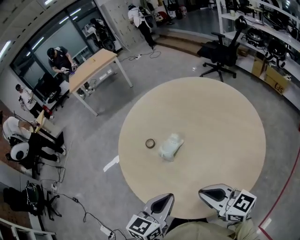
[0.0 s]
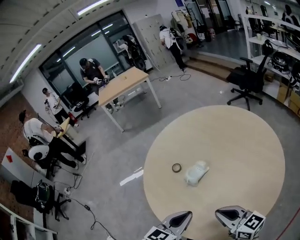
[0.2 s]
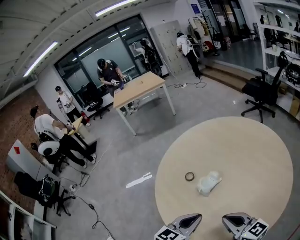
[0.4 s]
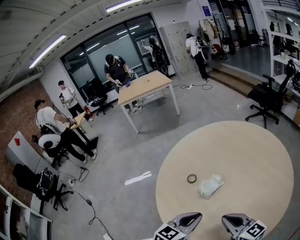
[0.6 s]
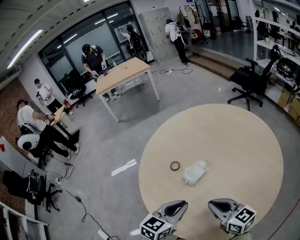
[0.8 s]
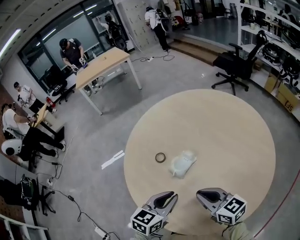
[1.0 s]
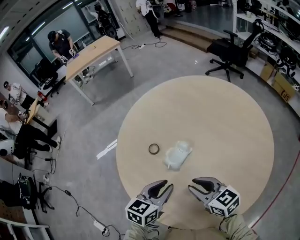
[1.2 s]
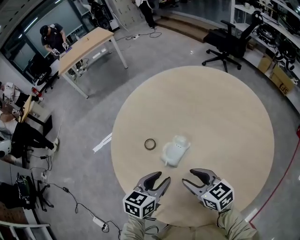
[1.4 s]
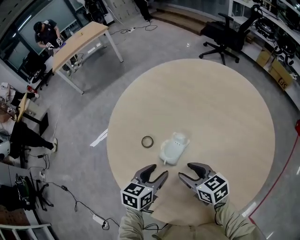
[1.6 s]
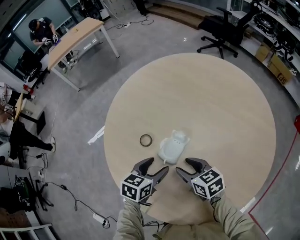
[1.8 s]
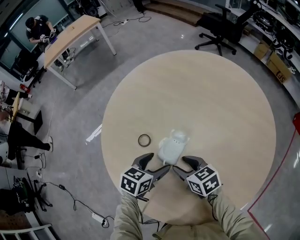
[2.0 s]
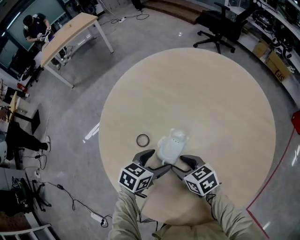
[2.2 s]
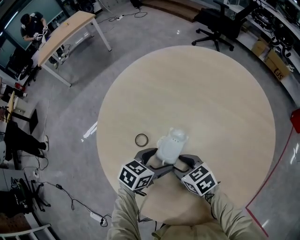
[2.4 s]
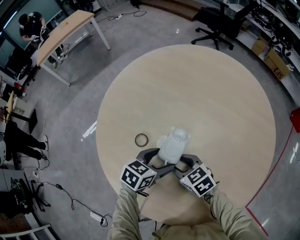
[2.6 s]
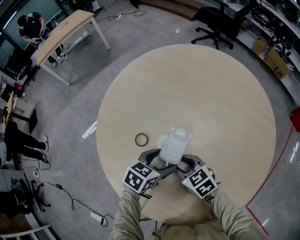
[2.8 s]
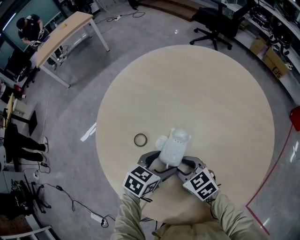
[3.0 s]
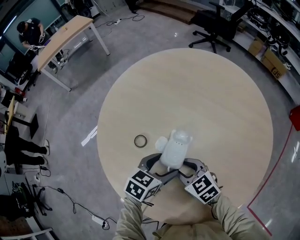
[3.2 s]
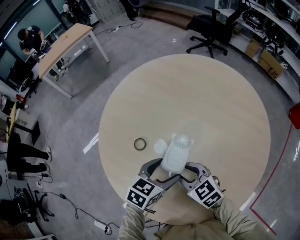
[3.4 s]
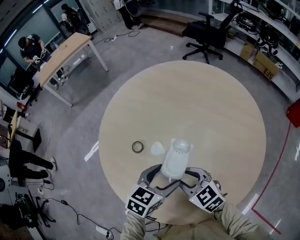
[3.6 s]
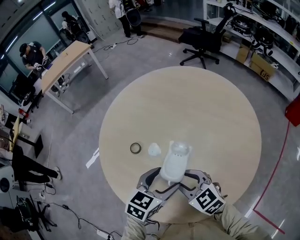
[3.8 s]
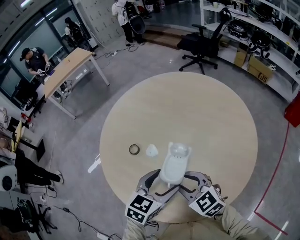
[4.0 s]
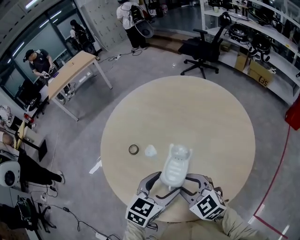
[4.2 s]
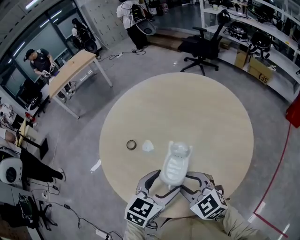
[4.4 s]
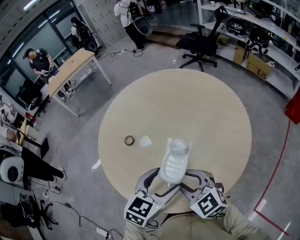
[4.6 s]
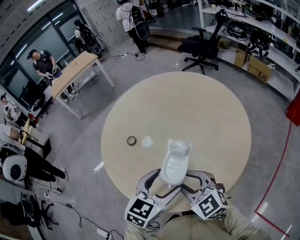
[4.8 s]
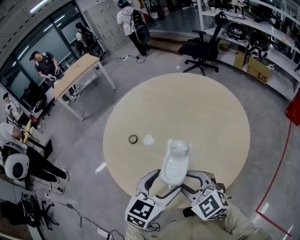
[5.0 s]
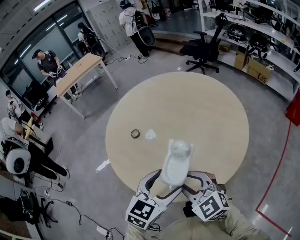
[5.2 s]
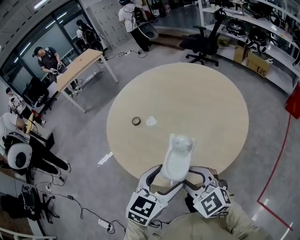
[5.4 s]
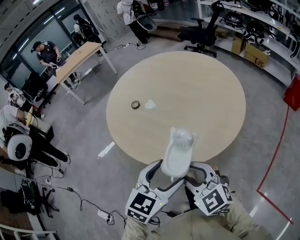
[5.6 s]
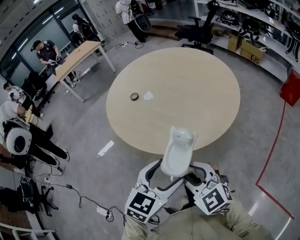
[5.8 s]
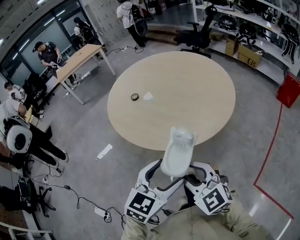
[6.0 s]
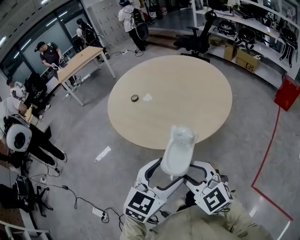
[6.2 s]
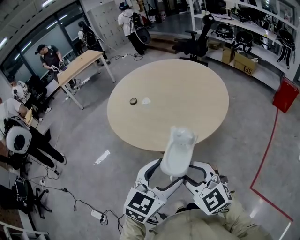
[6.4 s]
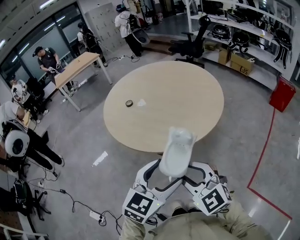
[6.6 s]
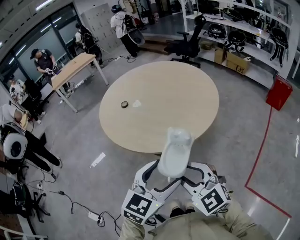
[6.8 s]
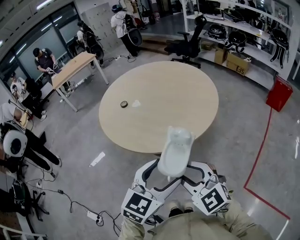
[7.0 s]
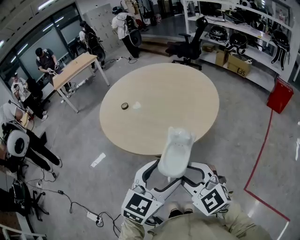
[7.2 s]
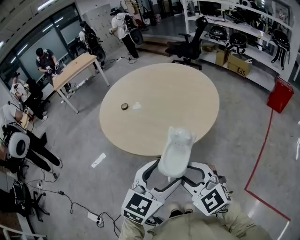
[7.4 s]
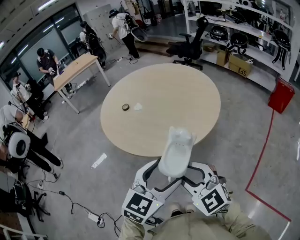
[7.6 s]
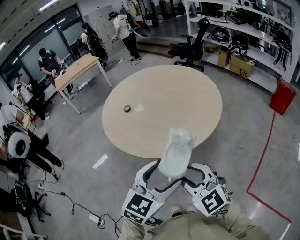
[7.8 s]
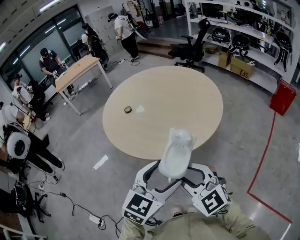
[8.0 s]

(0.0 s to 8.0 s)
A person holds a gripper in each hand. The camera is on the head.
0.0 s - 1.6 s: Both grippers move forward and downward, roughly 25 cm. The right gripper turns by some 20 degrees, and opens its fingers; the left gripper opens its fingers.
1.6 s - 3.2 s: The left gripper ends up roughly 5 cm from where it was, turns by approximately 20 degrees, and opens up.
3.2 s - 4.8 s: The left gripper is displaced backward, upward and to the right by about 25 cm, and changes its angle by some 20 degrees, while the right gripper moves upward, backward and to the right, approximately 25 cm, and rotates some 30 degrees.
4.8 s - 6.4 s: Both grippers travel together backward, roughly 35 cm.
6.4 s - 8.0 s: The grippers stay close to where they were, moving slightly.

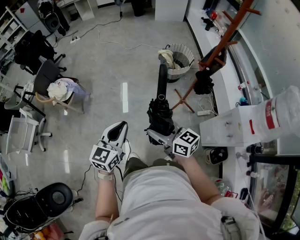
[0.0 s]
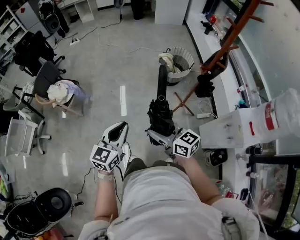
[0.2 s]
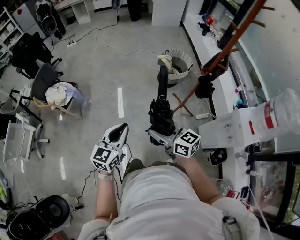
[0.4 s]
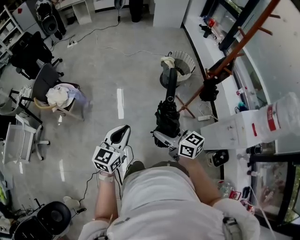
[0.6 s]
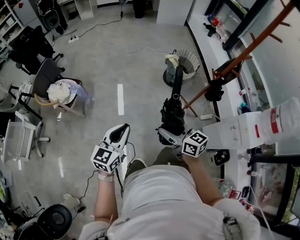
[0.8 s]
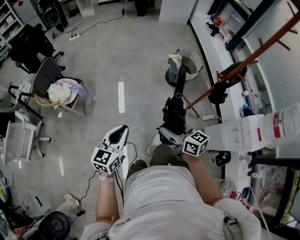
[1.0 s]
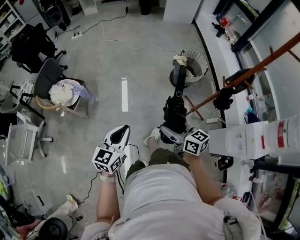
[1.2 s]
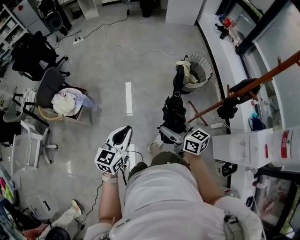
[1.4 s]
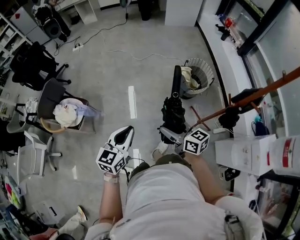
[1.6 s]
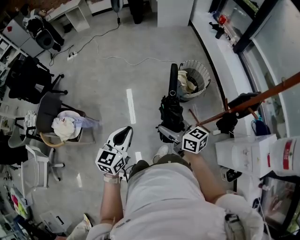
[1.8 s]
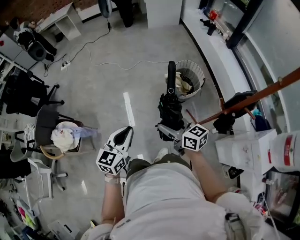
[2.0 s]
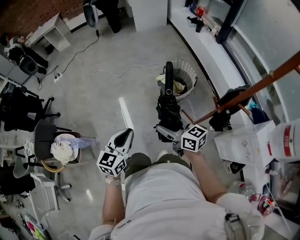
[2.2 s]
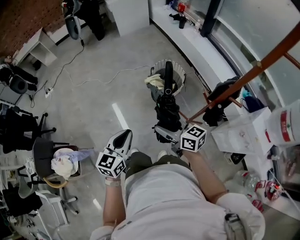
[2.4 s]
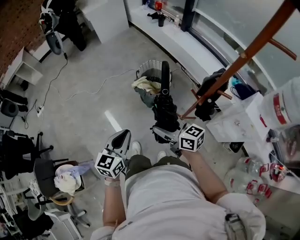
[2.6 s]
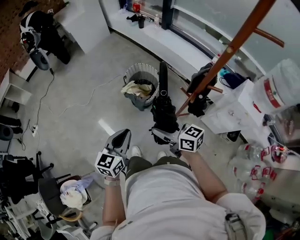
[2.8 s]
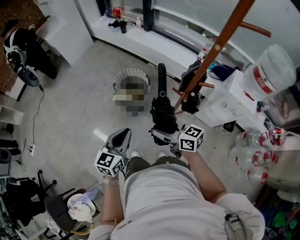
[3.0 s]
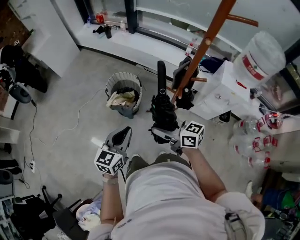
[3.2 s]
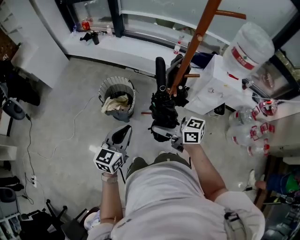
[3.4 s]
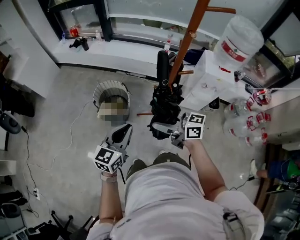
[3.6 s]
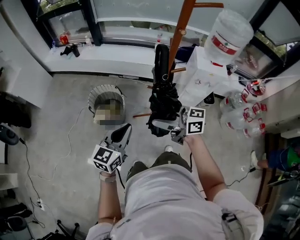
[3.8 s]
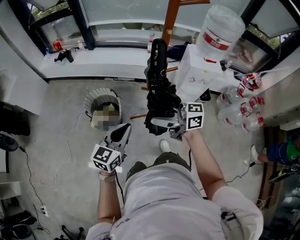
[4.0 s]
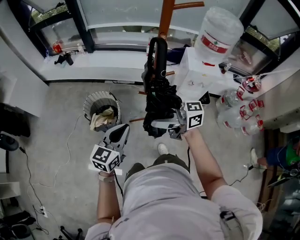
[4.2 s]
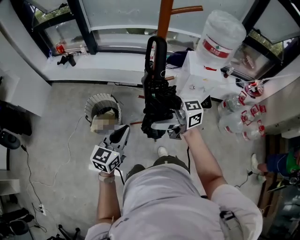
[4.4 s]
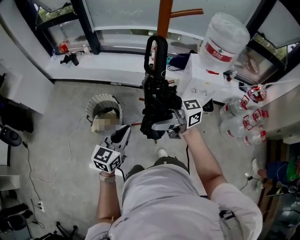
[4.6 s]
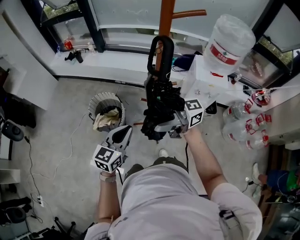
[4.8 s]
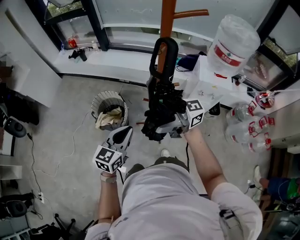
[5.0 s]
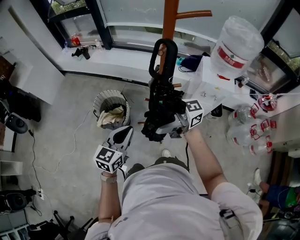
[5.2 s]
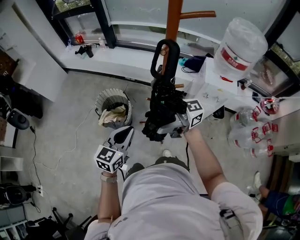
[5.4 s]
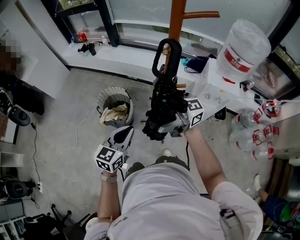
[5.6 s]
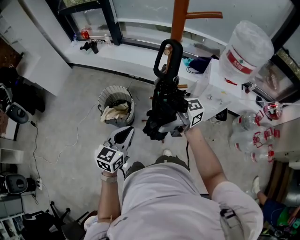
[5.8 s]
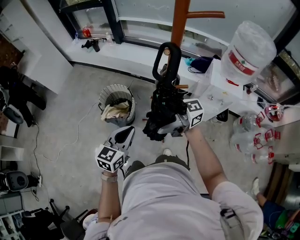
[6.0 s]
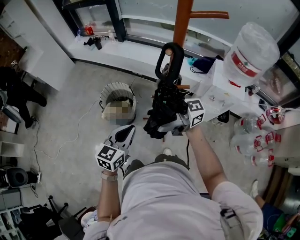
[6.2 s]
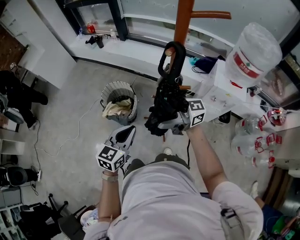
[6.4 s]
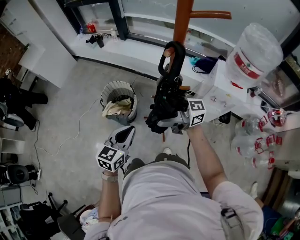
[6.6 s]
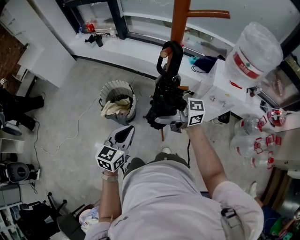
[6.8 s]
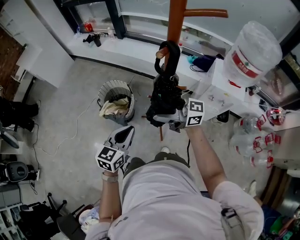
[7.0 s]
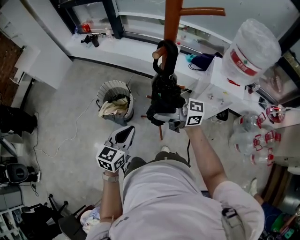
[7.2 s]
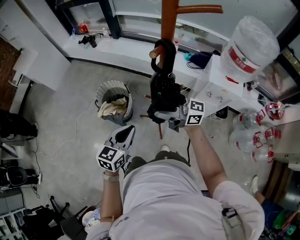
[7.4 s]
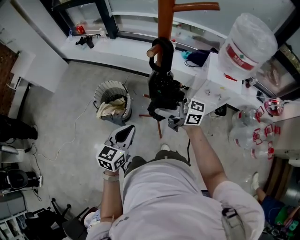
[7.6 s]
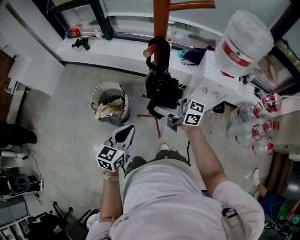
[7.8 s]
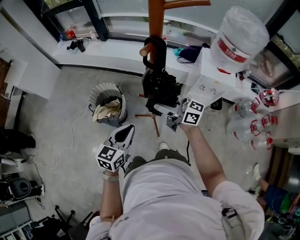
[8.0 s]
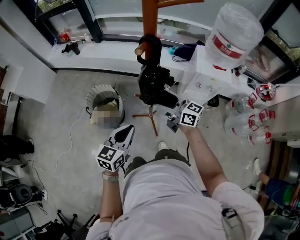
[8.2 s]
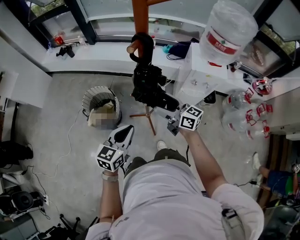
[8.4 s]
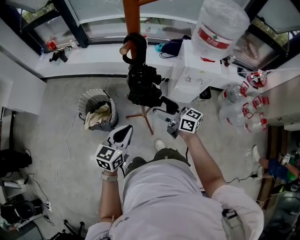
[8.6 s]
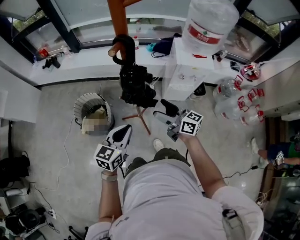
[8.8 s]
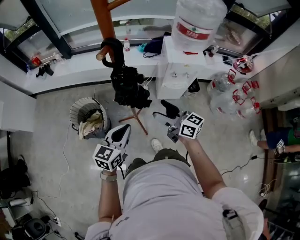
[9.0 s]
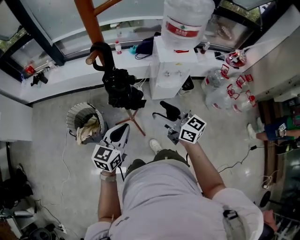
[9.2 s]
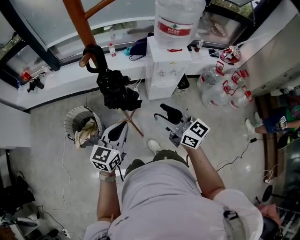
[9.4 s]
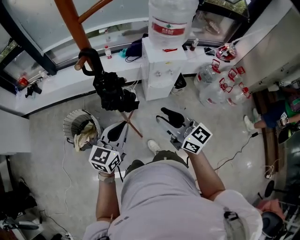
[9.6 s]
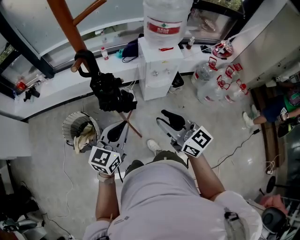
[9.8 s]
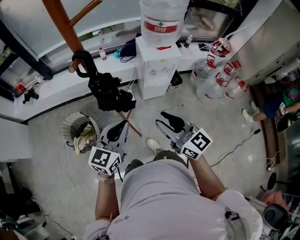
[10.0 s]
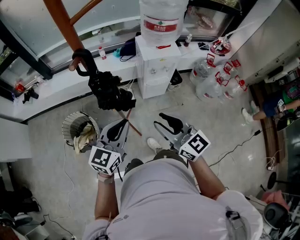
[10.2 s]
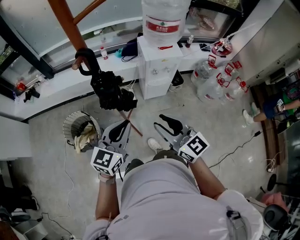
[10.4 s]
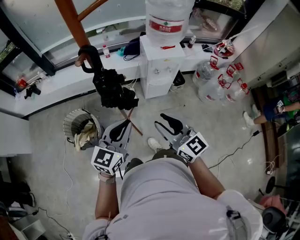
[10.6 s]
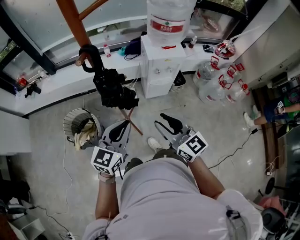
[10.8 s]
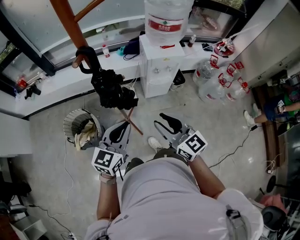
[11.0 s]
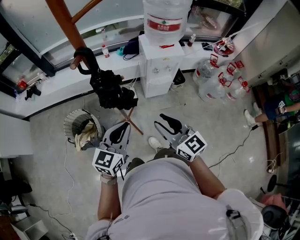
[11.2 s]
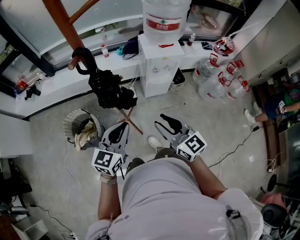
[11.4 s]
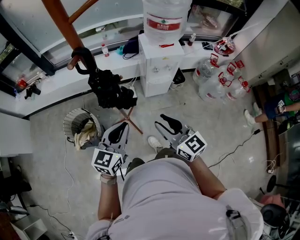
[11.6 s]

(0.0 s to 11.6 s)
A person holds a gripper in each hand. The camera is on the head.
0.0 s - 1.4 s: The left gripper shifts approximately 25 cm forward and to the left; the right gripper moves forward, about 20 cm.
1.4 s - 2.8 s: The right gripper moves approximately 30 cm, and changes its angle by roughly 30 degrees. The left gripper shifts by roughly 40 cm, and turns by approximately 40 degrees.
2.8 s - 4.4 s: The left gripper shifts by approximately 10 cm, and rotates some 40 degrees; the right gripper heads upward, covering about 10 cm, and rotates approximately 30 degrees.
4.4 s - 5.8 s: The right gripper ends up some 10 cm from where it was, and rotates approximately 30 degrees, while the left gripper changes place by roughly 5 cm.
5.8 s - 7.2 s: The right gripper shifts by approximately 10 cm, and changes its angle by roughly 20 degrees.
7.2 s - 8.8 s: The left gripper moves about 5 cm. Meanwhile the right gripper shifts by some 15 cm, and rotates approximately 50 degrees.
8.8 s - 10.2 s: The left gripper travels upward and to the right by about 10 cm, and swivels about 20 degrees. Meanwhile the right gripper heads backward, upward and to the right, covering approximately 15 cm, swivels roughly 40 degrees, and closes its fingers.
10.2 s - 11.6 s: The grippers stay close to where they were, moving slightly.

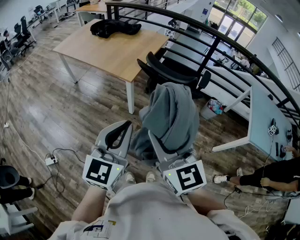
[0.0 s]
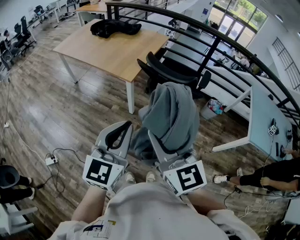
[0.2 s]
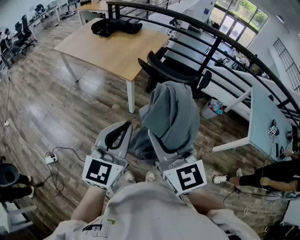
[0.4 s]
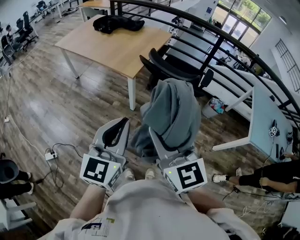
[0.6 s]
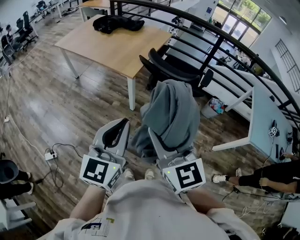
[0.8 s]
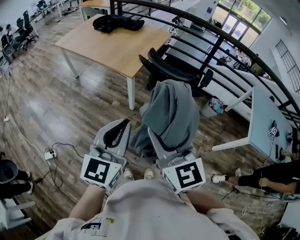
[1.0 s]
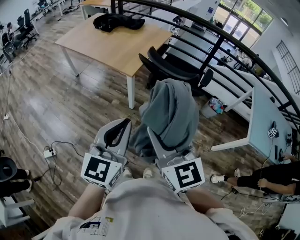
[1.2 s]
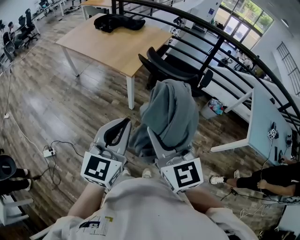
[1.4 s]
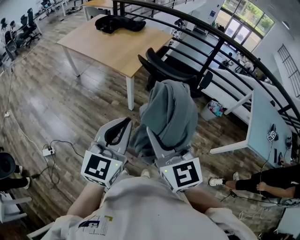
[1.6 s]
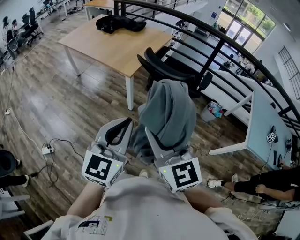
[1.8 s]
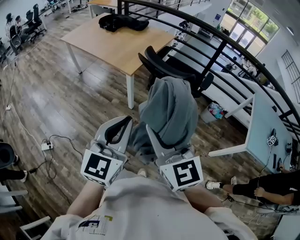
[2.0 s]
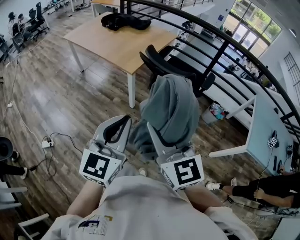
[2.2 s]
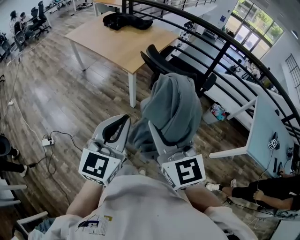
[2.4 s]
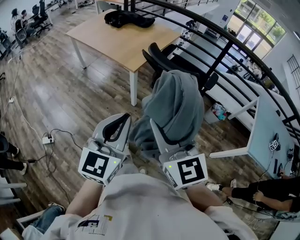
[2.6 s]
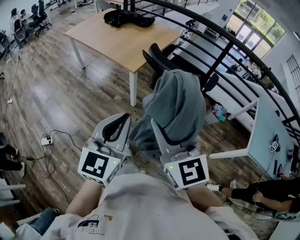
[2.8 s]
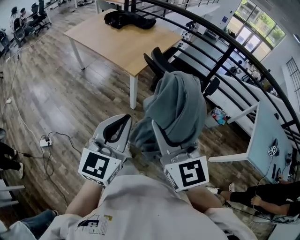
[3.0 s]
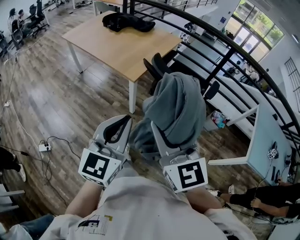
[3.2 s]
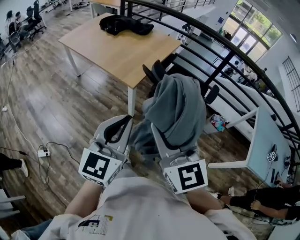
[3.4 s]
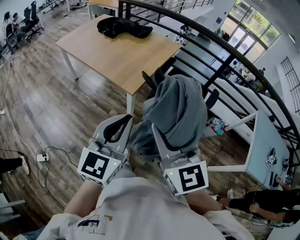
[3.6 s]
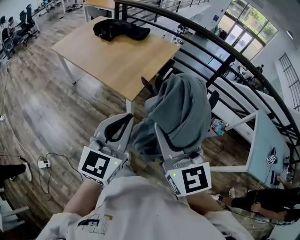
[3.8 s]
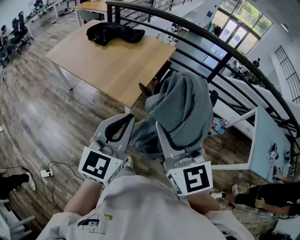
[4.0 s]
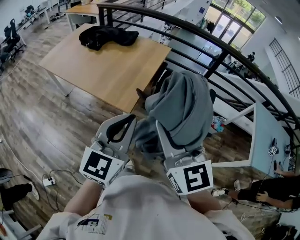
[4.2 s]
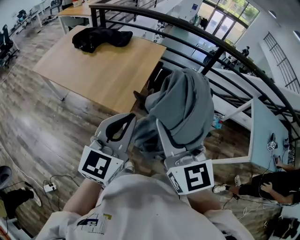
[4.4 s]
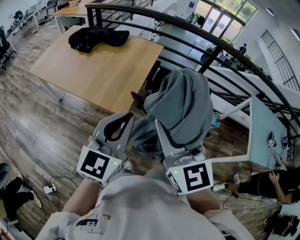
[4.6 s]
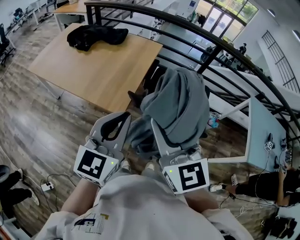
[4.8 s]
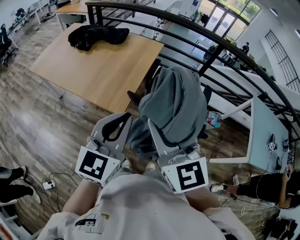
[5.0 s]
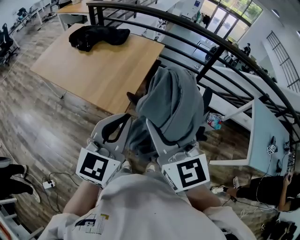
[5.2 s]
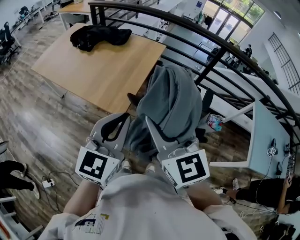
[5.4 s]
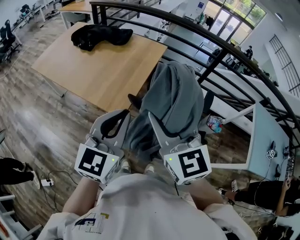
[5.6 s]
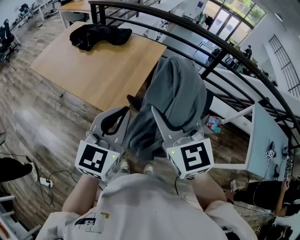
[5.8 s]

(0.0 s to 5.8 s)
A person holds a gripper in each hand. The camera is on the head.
0.0 s - 1.4 s: There are only small adjustments of the grippers.
1.4 s - 2.8 s: The right gripper changes place by approximately 5 cm.
2.8 s - 4.4 s: Both grippers move forward, roughly 35 cm.
4.4 s - 5.8 s: Both grippers travel together forward, roughly 10 cm.
